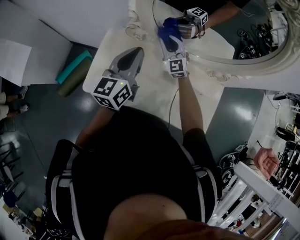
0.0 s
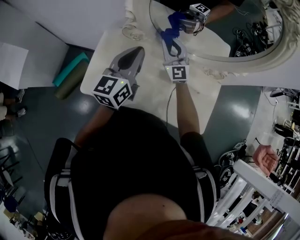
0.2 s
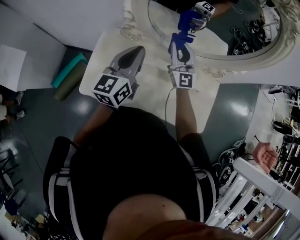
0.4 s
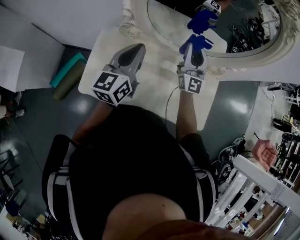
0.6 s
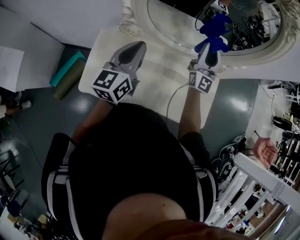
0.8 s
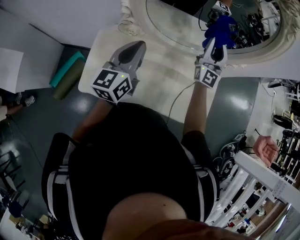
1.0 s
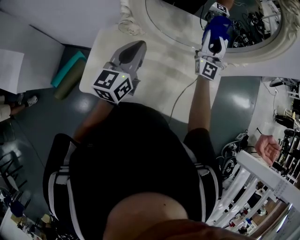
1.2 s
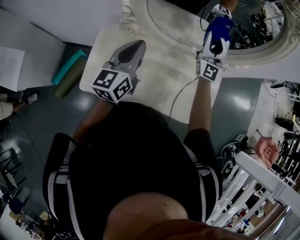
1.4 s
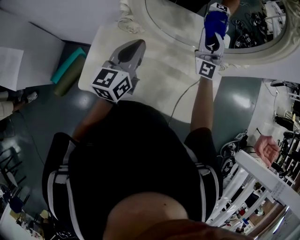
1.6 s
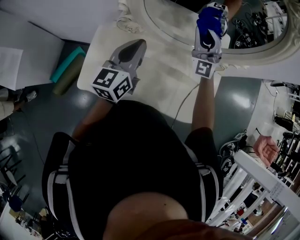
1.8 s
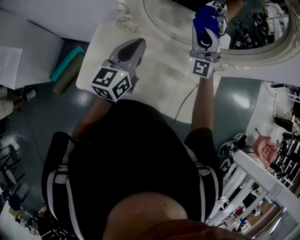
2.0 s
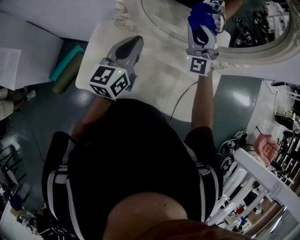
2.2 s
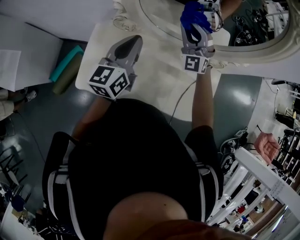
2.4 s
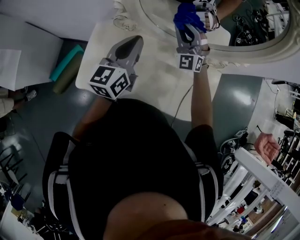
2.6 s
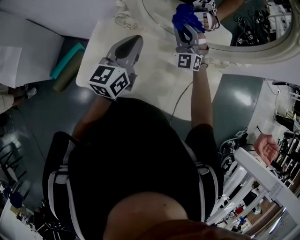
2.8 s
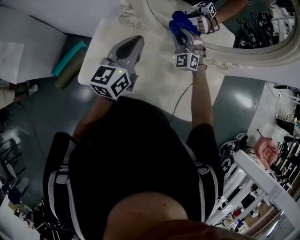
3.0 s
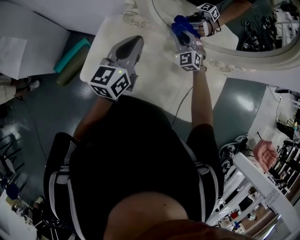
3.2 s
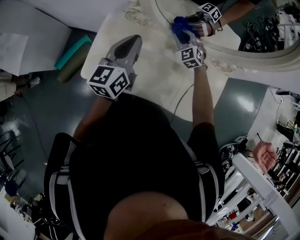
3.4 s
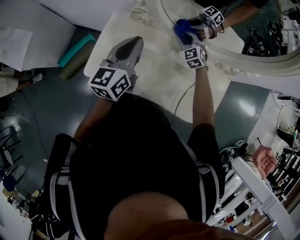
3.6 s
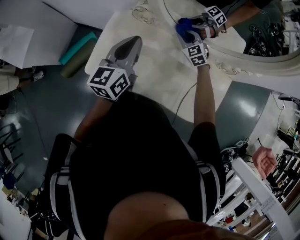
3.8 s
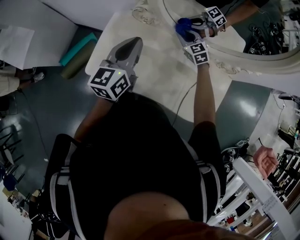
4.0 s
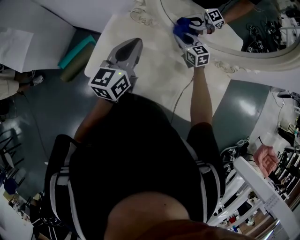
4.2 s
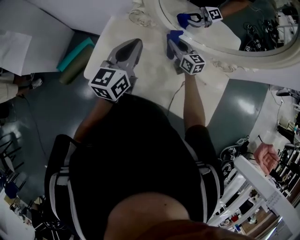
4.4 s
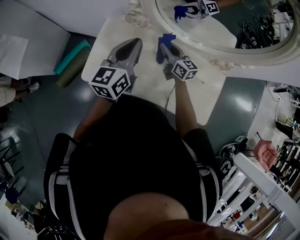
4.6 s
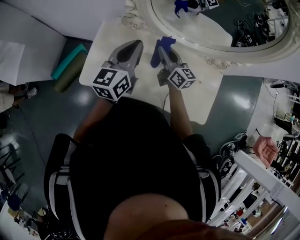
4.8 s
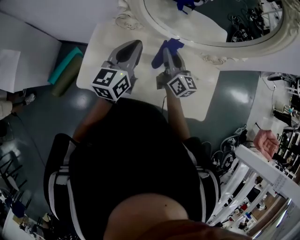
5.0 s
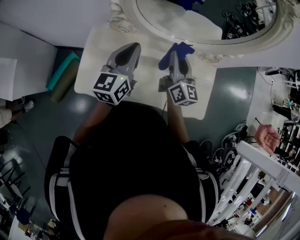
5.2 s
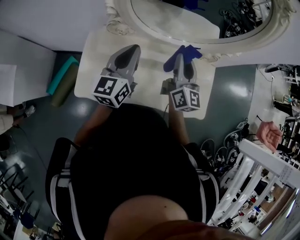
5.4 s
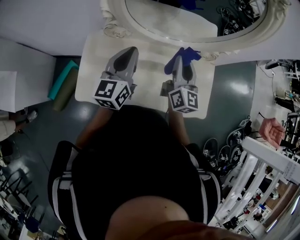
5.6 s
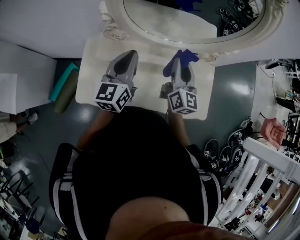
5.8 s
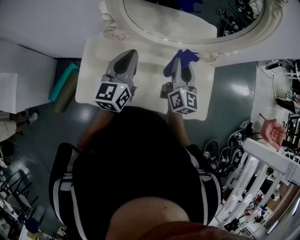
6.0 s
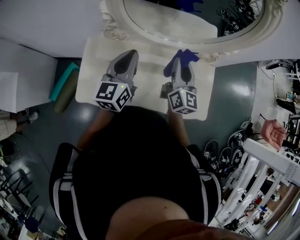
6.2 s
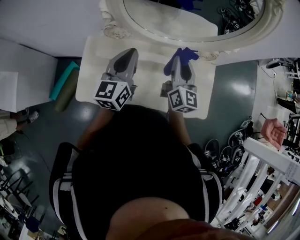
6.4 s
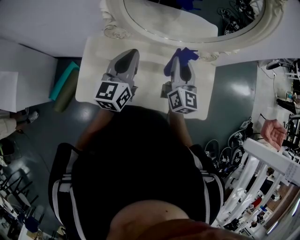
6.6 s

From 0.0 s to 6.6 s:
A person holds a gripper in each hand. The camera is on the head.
From 0.0 s to 1.6 s: The right gripper moves upward and to the right, roughly 20 cm, and changes its angle by about 30 degrees.
From 1.6 s to 3.2 s: The right gripper is displaced downward and to the left by approximately 20 cm, and points its fingers approximately 40 degrees further downward.
From 3.2 s to 5.0 s: The right gripper shifts roughly 15 cm backward and upward, and rotates around the line of its fingers by some 70 degrees, clockwise from behind.
From 5.0 s to 6.6 s: The right gripper moves to the right and upward, about 10 cm, and turns by some 30 degrees.

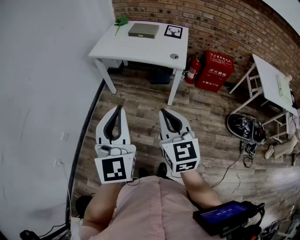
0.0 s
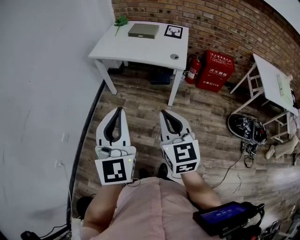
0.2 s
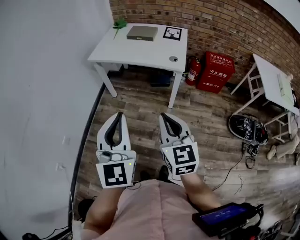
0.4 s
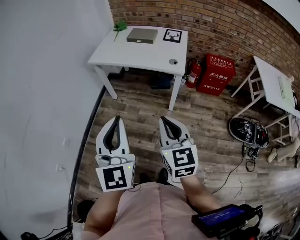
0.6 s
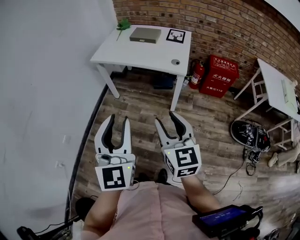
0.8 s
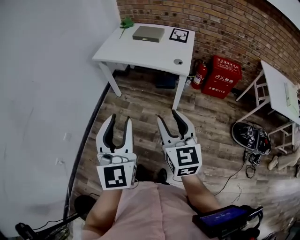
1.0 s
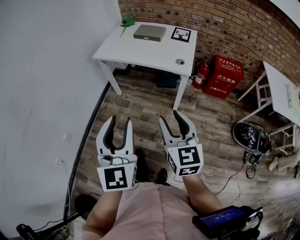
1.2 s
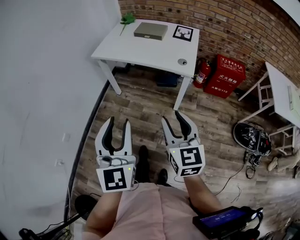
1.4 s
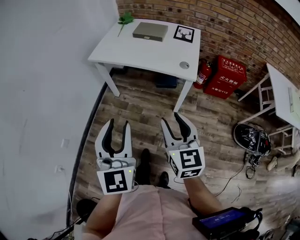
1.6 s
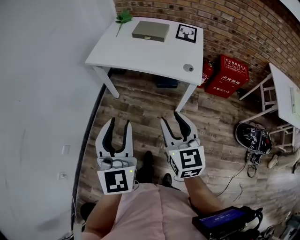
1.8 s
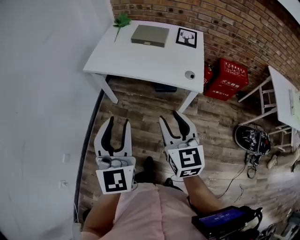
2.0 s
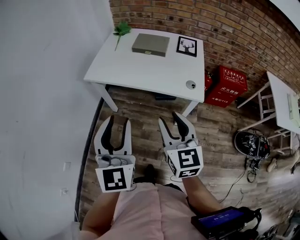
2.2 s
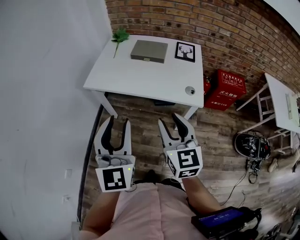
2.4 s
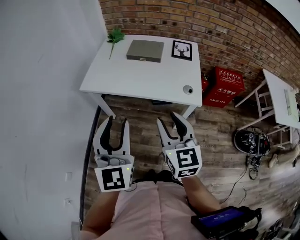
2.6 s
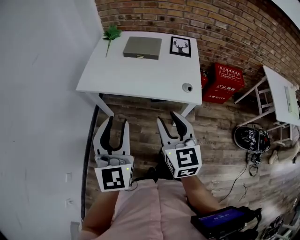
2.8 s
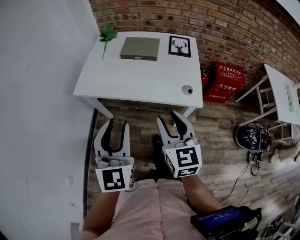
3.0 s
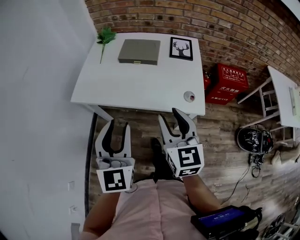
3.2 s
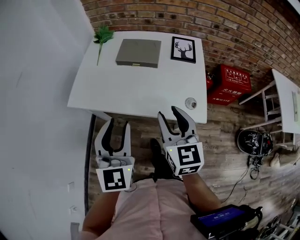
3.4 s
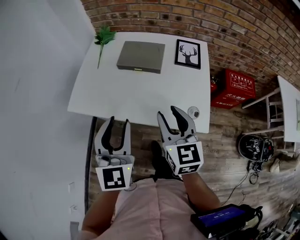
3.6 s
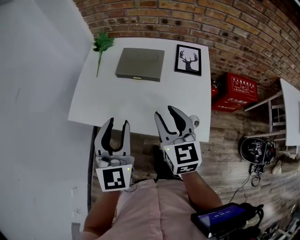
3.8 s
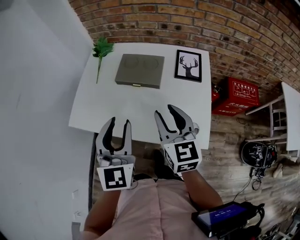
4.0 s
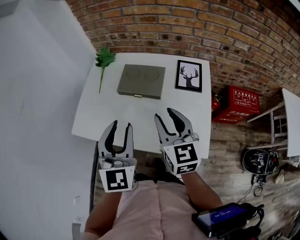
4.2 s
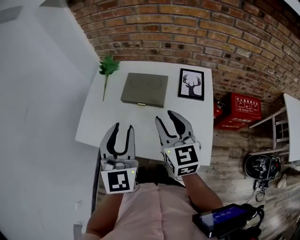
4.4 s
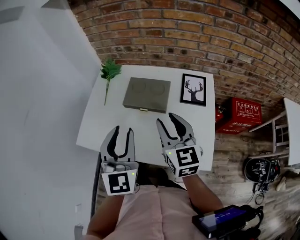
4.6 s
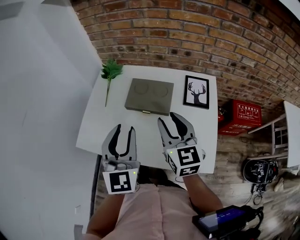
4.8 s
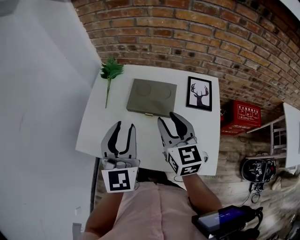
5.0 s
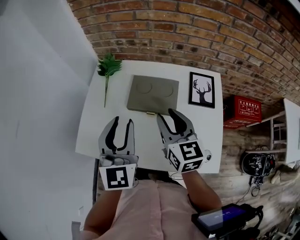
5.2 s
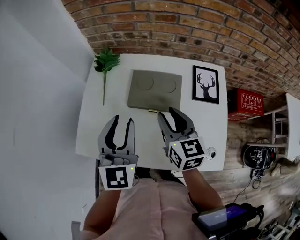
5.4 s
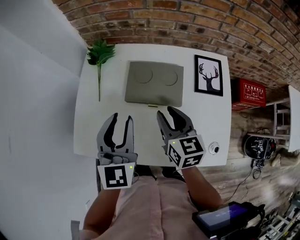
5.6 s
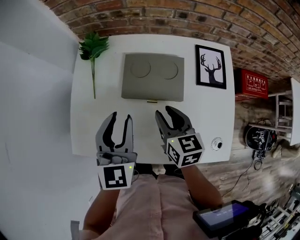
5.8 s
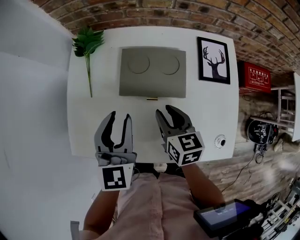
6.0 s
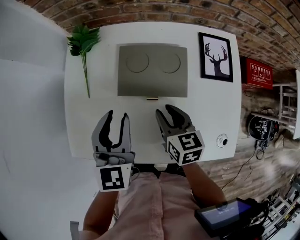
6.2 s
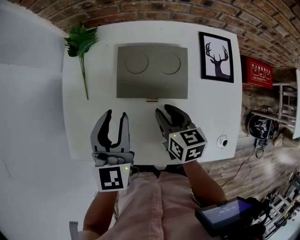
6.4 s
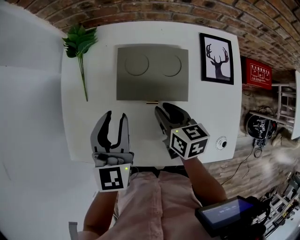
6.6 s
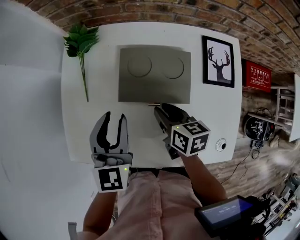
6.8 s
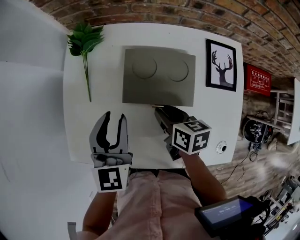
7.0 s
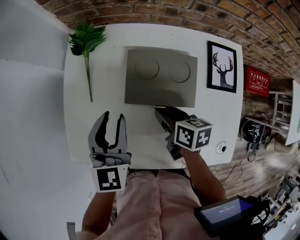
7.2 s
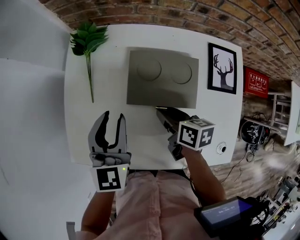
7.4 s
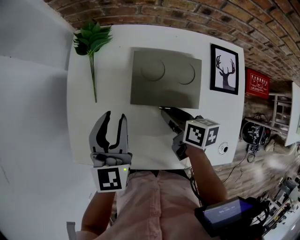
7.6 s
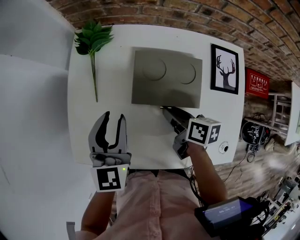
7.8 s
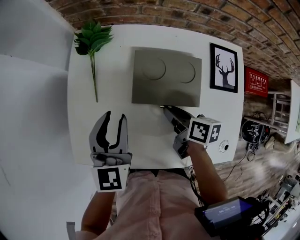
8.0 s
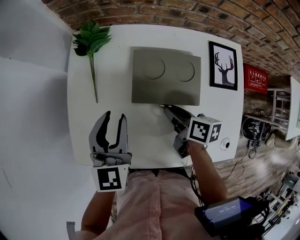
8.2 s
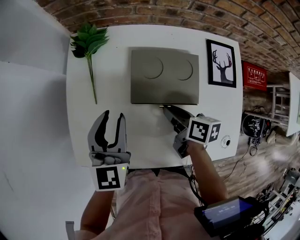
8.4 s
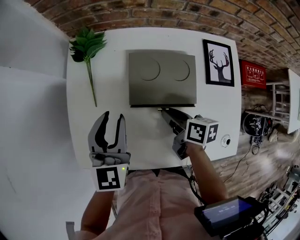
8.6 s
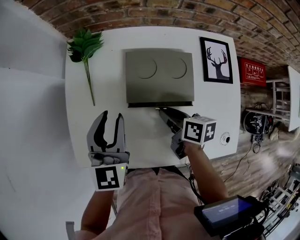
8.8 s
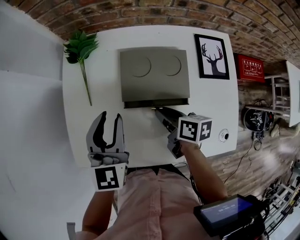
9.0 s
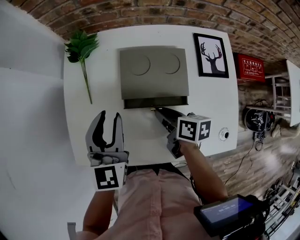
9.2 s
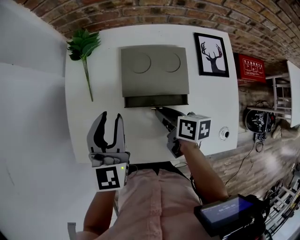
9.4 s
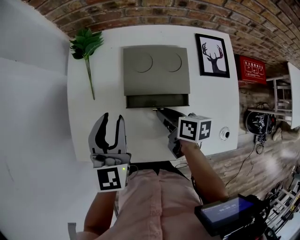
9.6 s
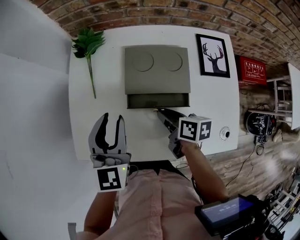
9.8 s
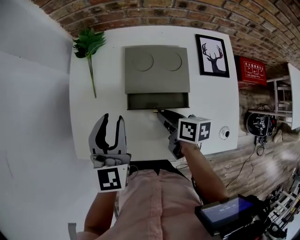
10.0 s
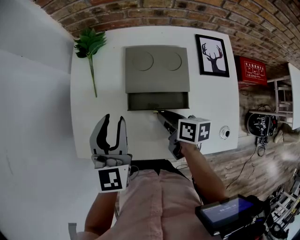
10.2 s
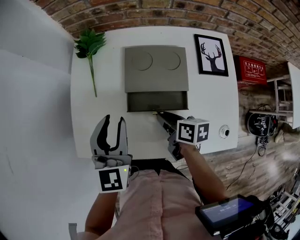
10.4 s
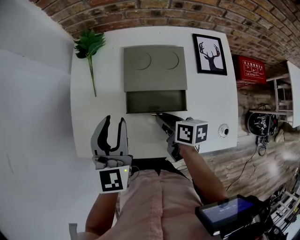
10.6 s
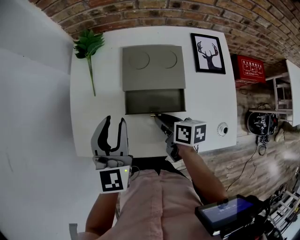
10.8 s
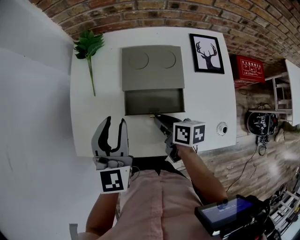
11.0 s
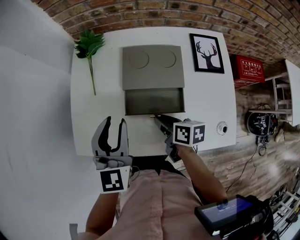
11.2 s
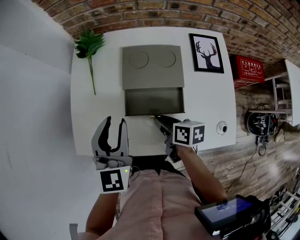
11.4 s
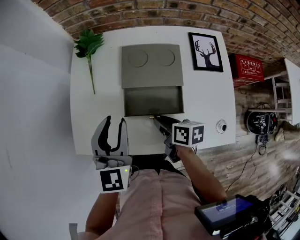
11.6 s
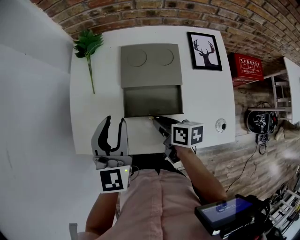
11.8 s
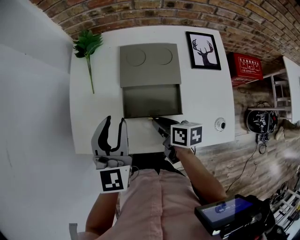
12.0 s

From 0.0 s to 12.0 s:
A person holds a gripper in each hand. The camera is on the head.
From 0.0 s to 1.6 s: The grippers both shift forward and downward by some 15 cm. The right gripper opens up. The left gripper opens.
From 1.6 s to 3.0 s: Both grippers move forward, approximately 25 cm.
From 3.0 s to 4.4 s: The grippers both shift forward by roughly 30 cm.
From 4.4 s to 6.0 s: The left gripper heads forward, downward and to the left, covering some 20 cm. The right gripper shifts about 20 cm downward and forward, and turns by roughly 30 degrees.
From 6.0 s to 7.6 s: The right gripper changes place by some 5 cm, and turns by about 30 degrees. Meanwhile the left gripper moves forward and to the left, approximately 5 cm.
From 7.6 s to 9.0 s: The grippers make only small movements.
From 9.0 s to 10.4 s: The left gripper shifts some 5 cm backward.
From 10.4 s to 12.0 s: The right gripper ends up approximately 5 cm from where it was.

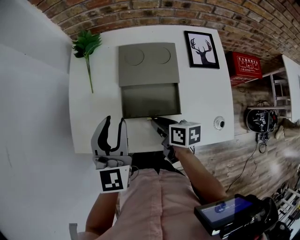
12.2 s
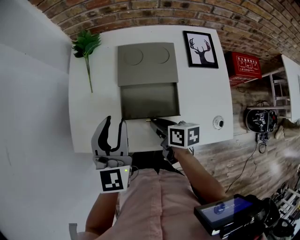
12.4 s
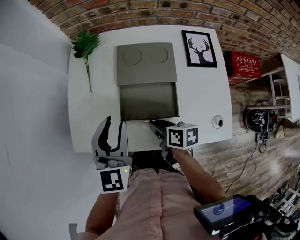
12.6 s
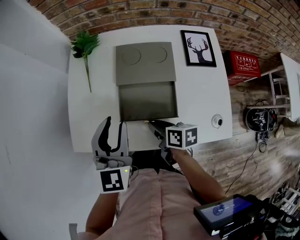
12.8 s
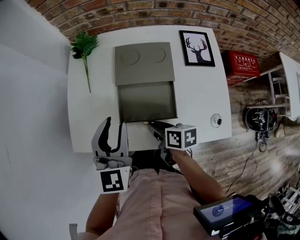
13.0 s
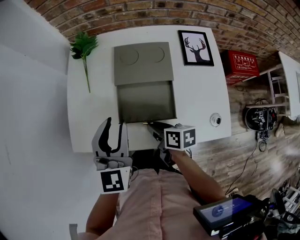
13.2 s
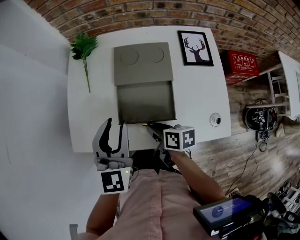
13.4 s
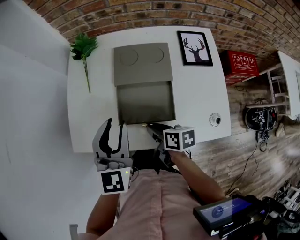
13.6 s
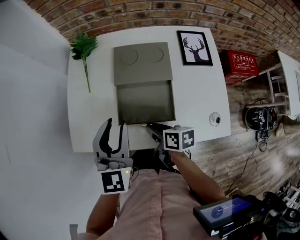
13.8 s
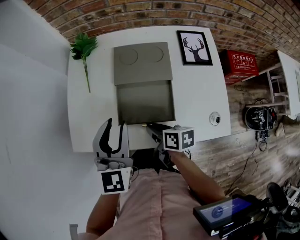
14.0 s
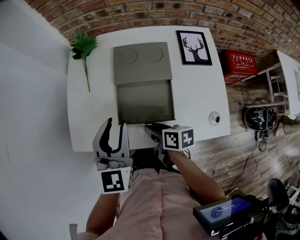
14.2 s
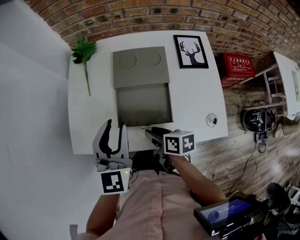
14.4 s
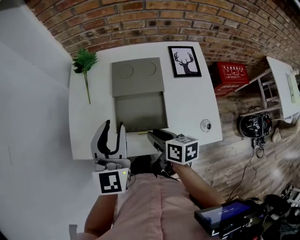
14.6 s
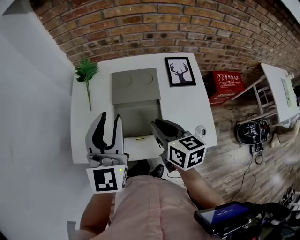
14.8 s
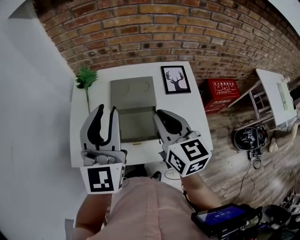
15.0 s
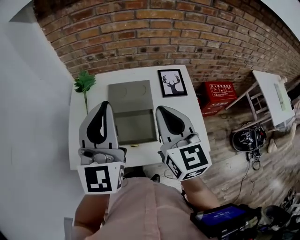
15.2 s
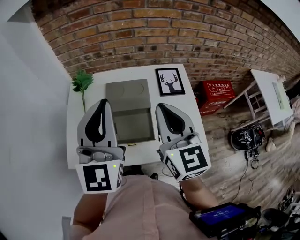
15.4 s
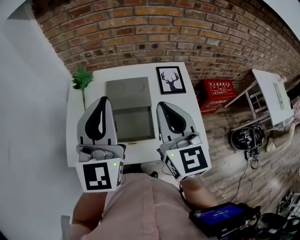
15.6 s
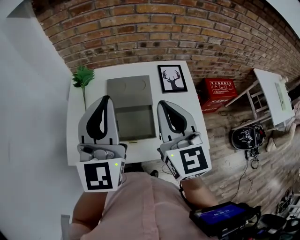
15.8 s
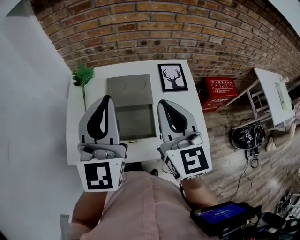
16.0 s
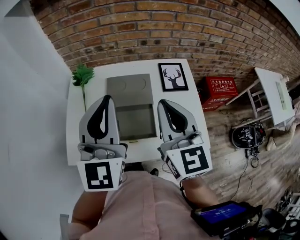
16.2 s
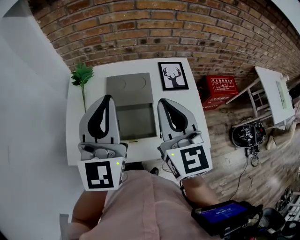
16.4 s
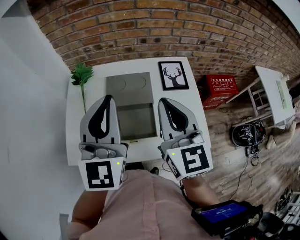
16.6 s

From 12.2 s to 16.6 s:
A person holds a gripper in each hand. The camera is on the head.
From 12.2 s to 13.6 s: The grippers make only small movements.
From 13.6 s to 15.2 s: The right gripper shifts some 35 cm upward, tilts its fingers about 30 degrees upward, and opens and closes again, while the left gripper is displaced upward by roughly 20 cm, changes its angle by about 30 degrees, and closes up.
From 15.2 s to 16.6 s: The grippers move only a little.

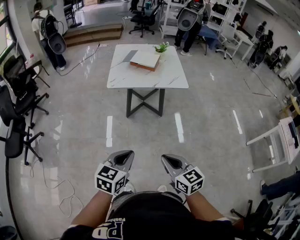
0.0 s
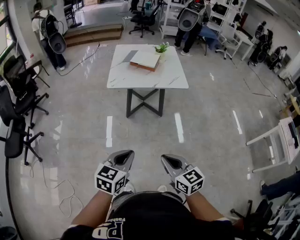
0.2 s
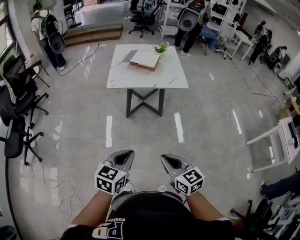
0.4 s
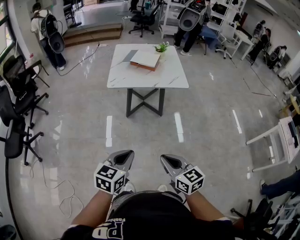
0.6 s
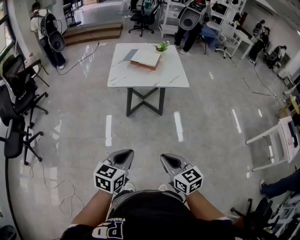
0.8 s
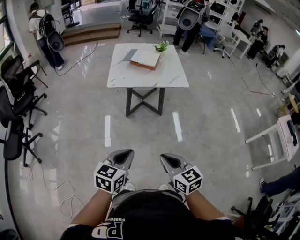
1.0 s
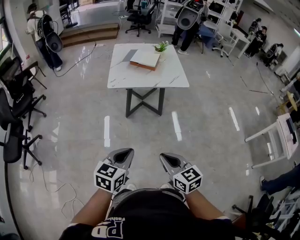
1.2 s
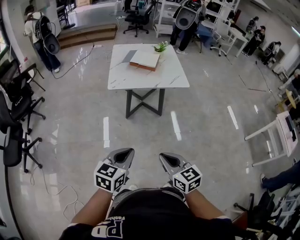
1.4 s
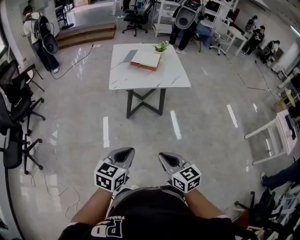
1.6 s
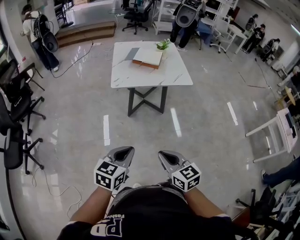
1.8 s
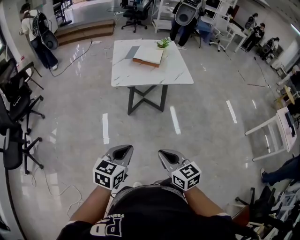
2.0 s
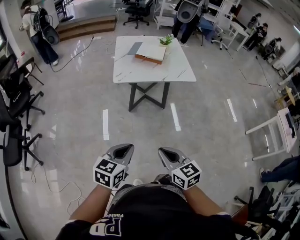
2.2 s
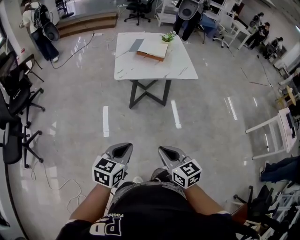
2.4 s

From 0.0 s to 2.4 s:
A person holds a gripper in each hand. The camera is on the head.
From 0.0 s to 1.2 s: The grippers stay close to where they were, moving slightly.
From 1.2 s to 2.4 s: The two grippers go roughly 10 cm to the left.
